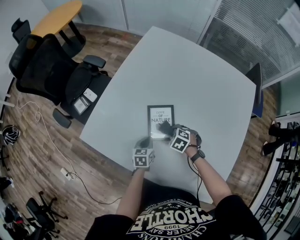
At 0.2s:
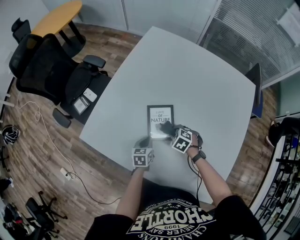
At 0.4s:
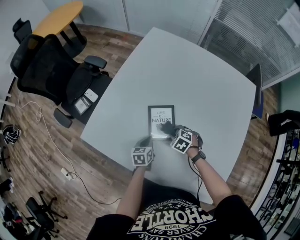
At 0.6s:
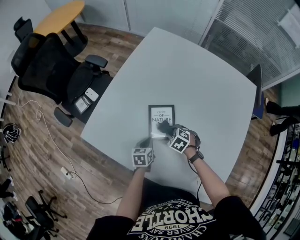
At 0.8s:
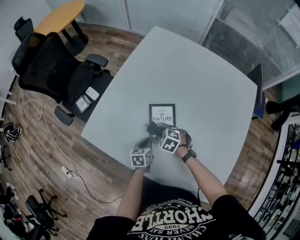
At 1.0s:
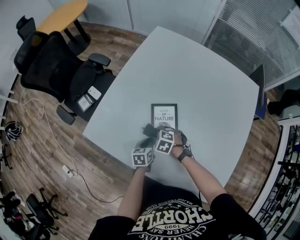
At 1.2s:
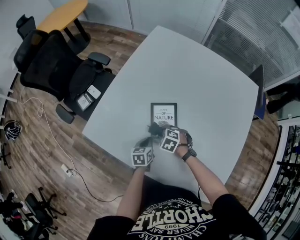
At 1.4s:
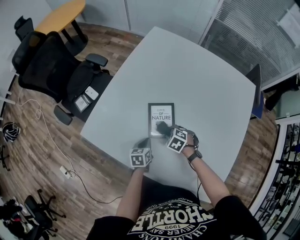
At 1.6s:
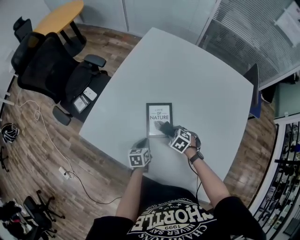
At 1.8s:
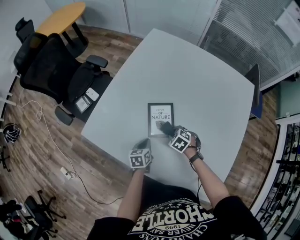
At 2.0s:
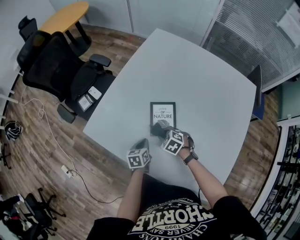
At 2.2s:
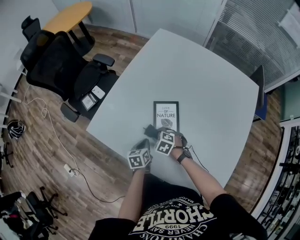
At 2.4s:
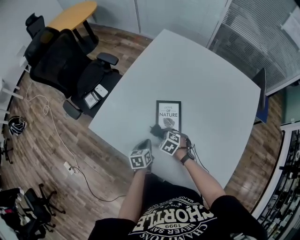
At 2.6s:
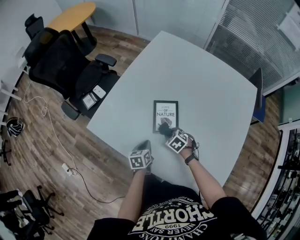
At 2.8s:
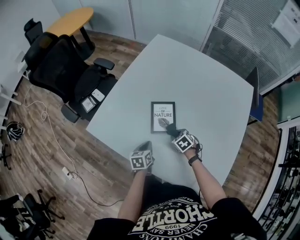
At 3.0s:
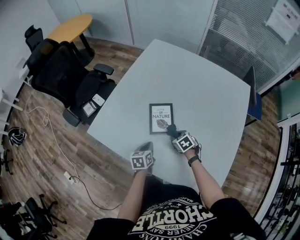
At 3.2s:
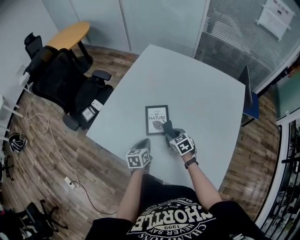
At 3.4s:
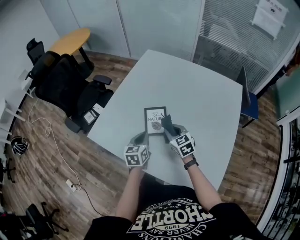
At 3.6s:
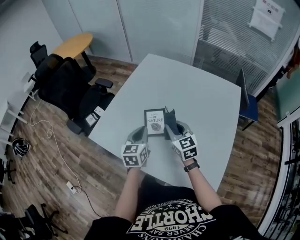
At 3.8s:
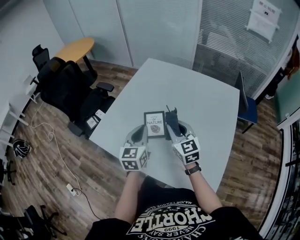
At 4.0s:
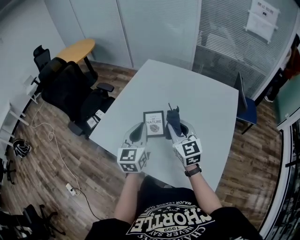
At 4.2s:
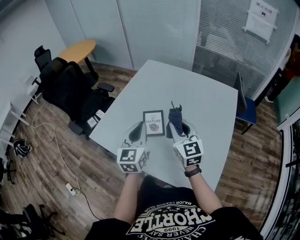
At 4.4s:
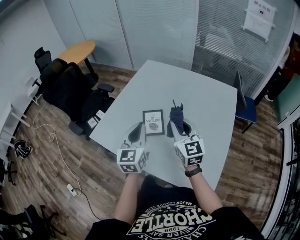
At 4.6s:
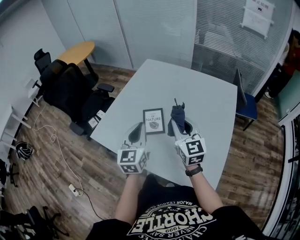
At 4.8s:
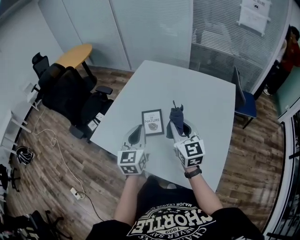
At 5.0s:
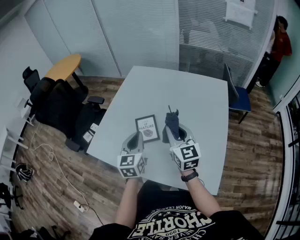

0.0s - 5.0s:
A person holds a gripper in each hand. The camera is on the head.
0.0s - 1.6s: The right gripper goes to the left and returns, some 10 cm each way.
1.6s - 3.4s: The grippers both shift upward by roughly 20 cm. The right gripper points its fingers some 40 degrees further upward, while the left gripper turns by approximately 20 degrees.
3.4s - 5.0s: The right gripper goes about 20 cm upward and backward, and rotates approximately 30 degrees. Meanwhile the left gripper goes approximately 15 cm upward, and changes its angle by some 20 degrees.

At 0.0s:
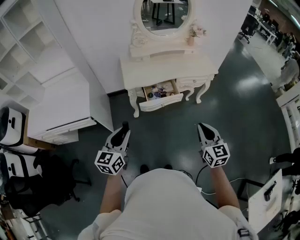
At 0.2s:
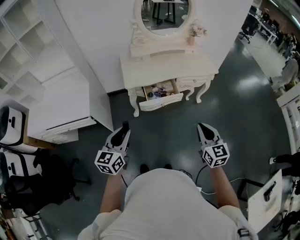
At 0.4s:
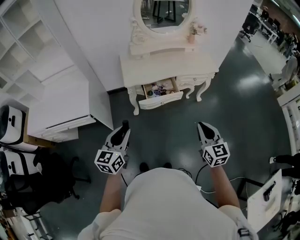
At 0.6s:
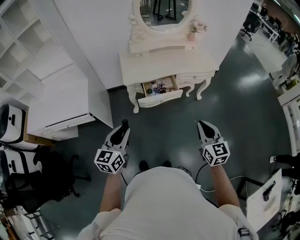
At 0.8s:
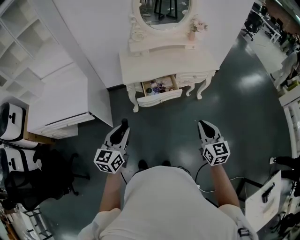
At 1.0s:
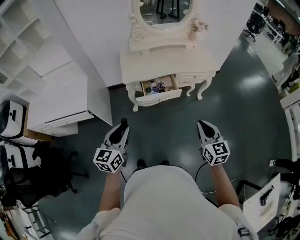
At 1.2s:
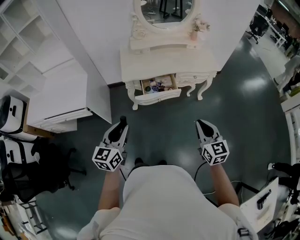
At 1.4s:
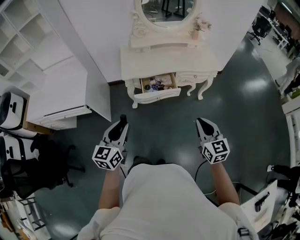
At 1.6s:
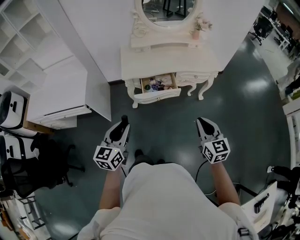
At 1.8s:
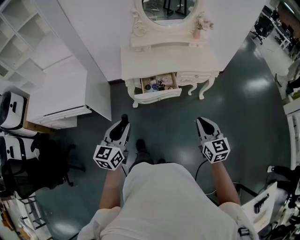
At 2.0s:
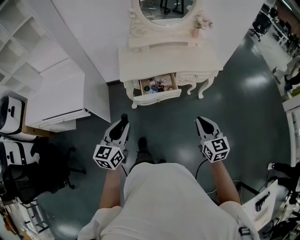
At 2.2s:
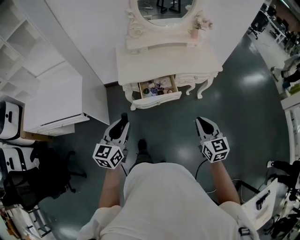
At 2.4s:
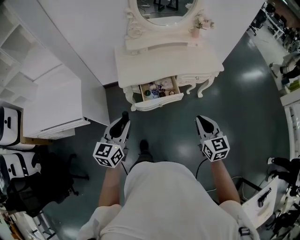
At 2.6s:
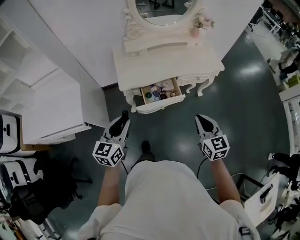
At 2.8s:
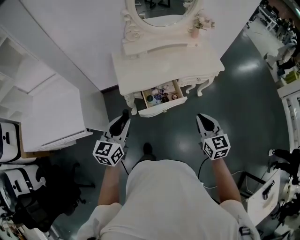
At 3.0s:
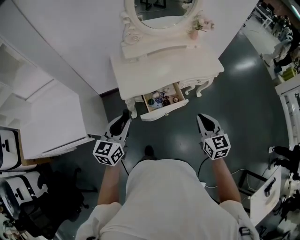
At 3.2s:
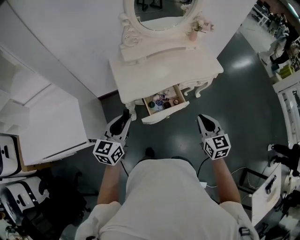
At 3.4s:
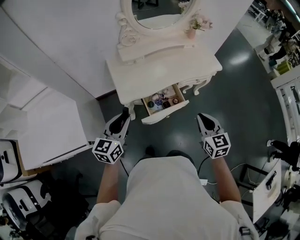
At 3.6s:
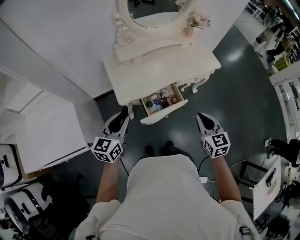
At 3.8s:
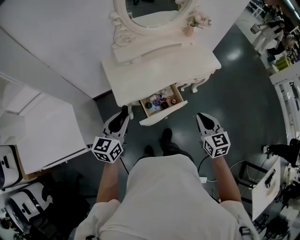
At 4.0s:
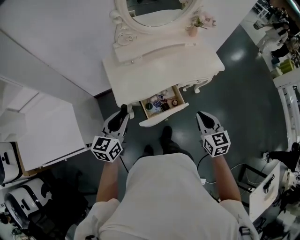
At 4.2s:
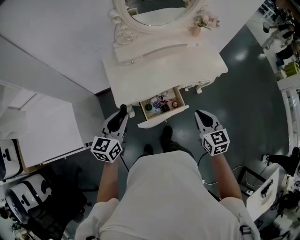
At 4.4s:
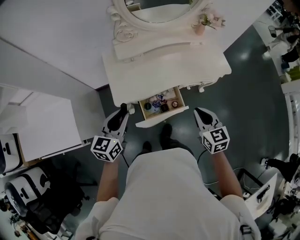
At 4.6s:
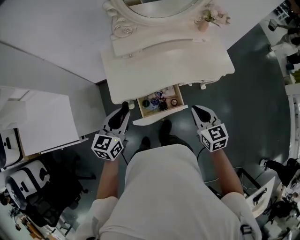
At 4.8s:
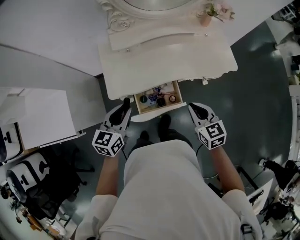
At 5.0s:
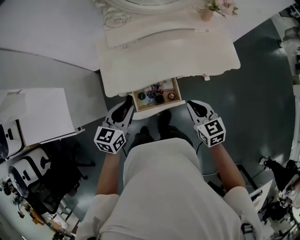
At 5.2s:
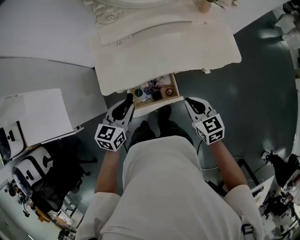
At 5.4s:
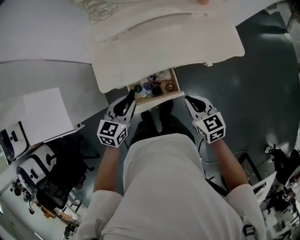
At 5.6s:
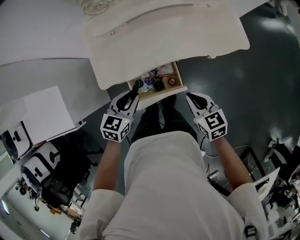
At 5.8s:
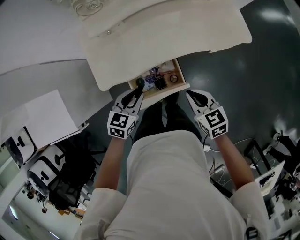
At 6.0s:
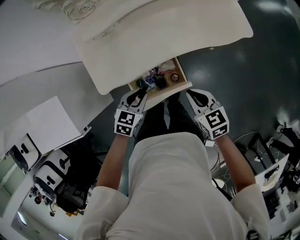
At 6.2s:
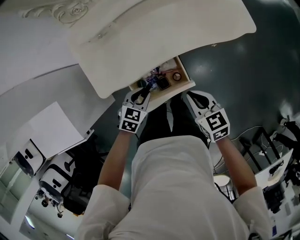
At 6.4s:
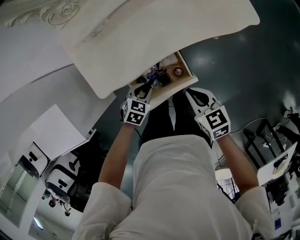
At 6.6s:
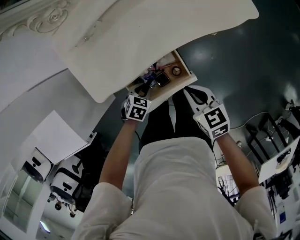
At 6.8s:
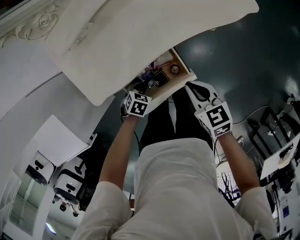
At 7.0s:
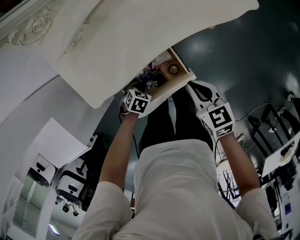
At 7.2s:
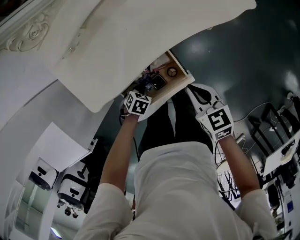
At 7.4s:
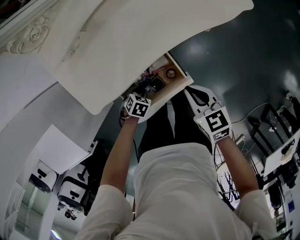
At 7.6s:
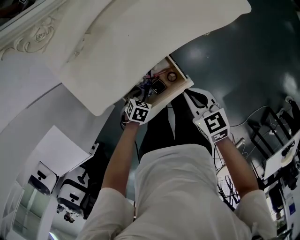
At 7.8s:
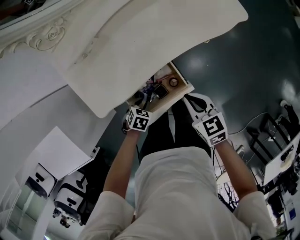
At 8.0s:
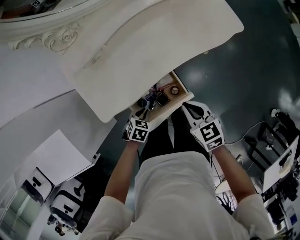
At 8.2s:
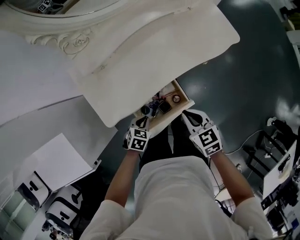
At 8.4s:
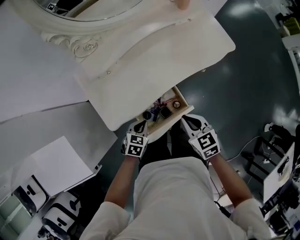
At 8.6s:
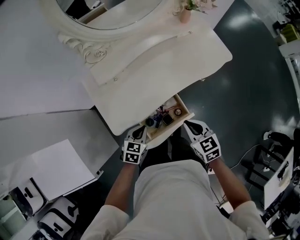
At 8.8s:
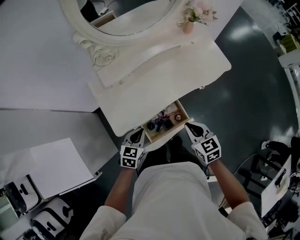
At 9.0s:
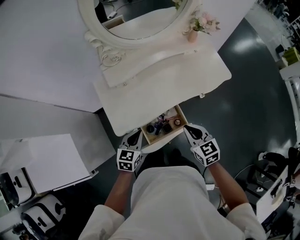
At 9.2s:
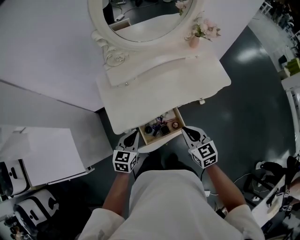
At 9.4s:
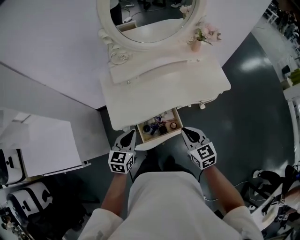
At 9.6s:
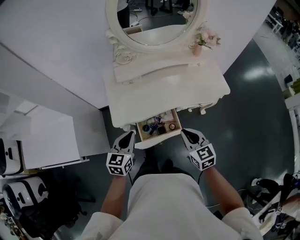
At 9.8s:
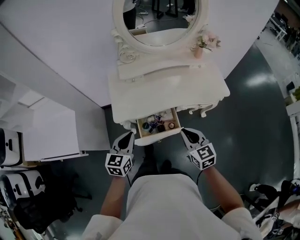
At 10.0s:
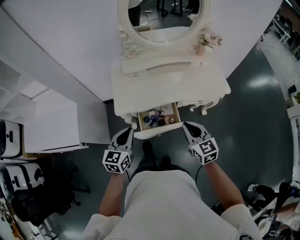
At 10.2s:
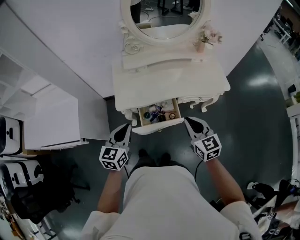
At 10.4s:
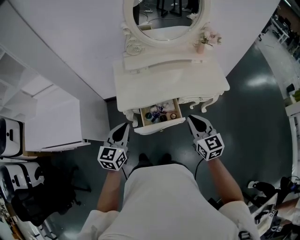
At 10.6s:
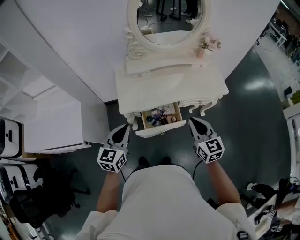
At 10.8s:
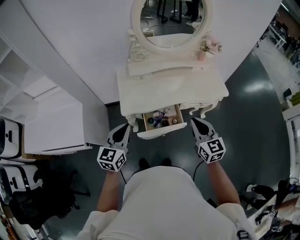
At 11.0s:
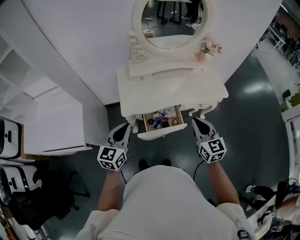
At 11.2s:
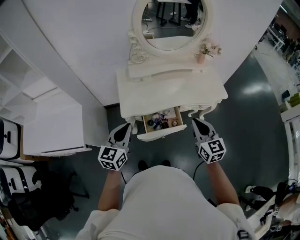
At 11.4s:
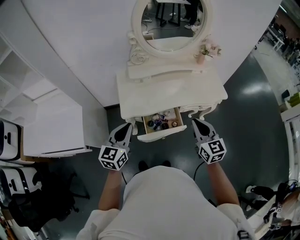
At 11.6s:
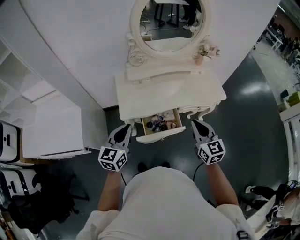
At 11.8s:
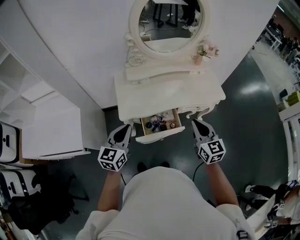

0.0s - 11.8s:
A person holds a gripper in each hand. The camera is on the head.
0.0s - 1.4s: Both grippers move to the right, approximately 5 cm.
1.4s - 3.0s: The left gripper is displaced forward by about 25 cm, while the right gripper travels forward and to the left by approximately 20 cm.
3.0s - 4.4s: Both grippers travel together forward, roughly 15 cm.
4.4s - 6.0s: The left gripper heads downward and to the right, covering some 25 cm, and angles its fingers downward, by approximately 30 degrees. Meanwhile the right gripper heads downward, covering some 15 cm, and rotates some 20 degrees.
6.0s - 7.4s: The left gripper heads downward, covering some 20 cm, and changes its angle by approximately 40 degrees; the right gripper travels downward by about 5 cm.
7.4s - 8.8s: The right gripper is displaced upward by some 10 cm. Meanwhile the left gripper is displaced upward by roughly 25 cm, tips its fingers upward by approximately 40 degrees, and closes its fingers.
8.8s - 10.4s: Both grippers travel together upward and backward, roughly 20 cm. The right gripper swivels roughly 20 degrees, while the left gripper rotates about 30 degrees.
10.4s - 11.8s: The grippers stay close to where they were, moving slightly.

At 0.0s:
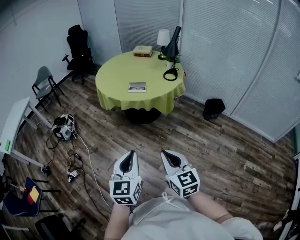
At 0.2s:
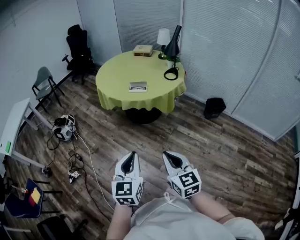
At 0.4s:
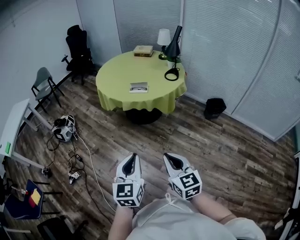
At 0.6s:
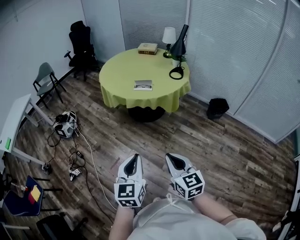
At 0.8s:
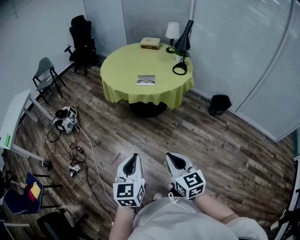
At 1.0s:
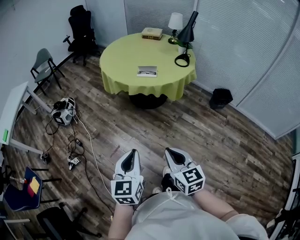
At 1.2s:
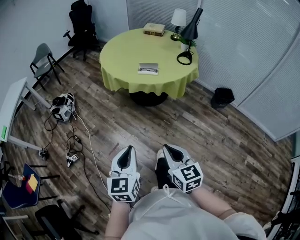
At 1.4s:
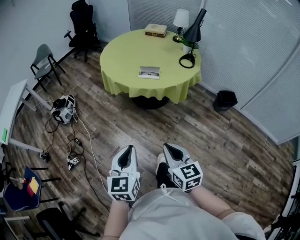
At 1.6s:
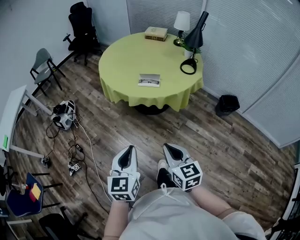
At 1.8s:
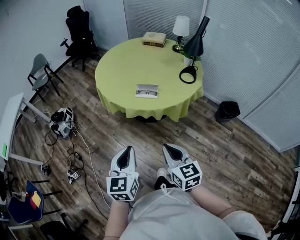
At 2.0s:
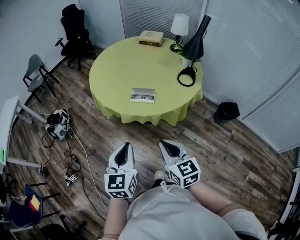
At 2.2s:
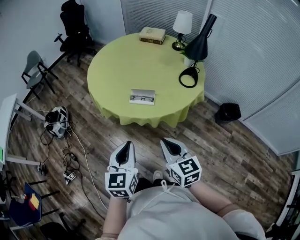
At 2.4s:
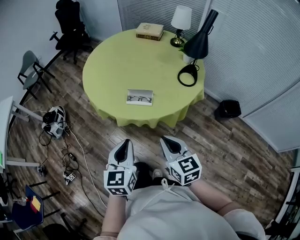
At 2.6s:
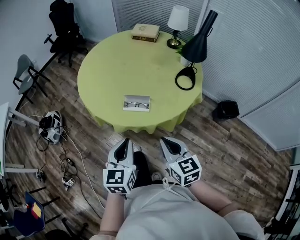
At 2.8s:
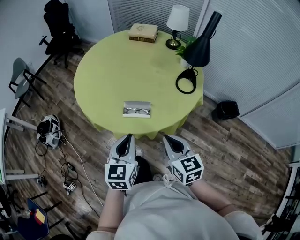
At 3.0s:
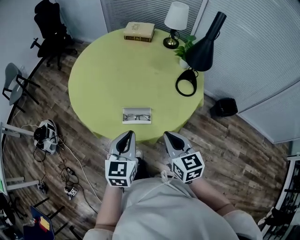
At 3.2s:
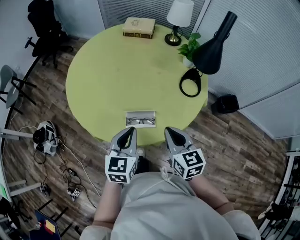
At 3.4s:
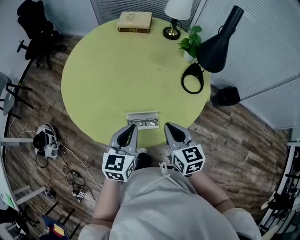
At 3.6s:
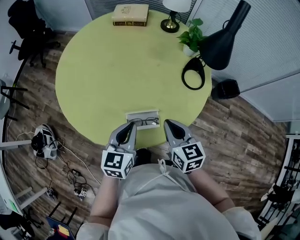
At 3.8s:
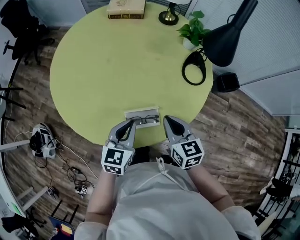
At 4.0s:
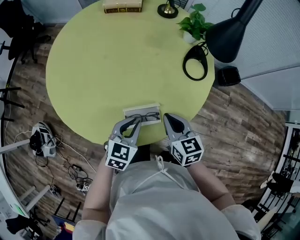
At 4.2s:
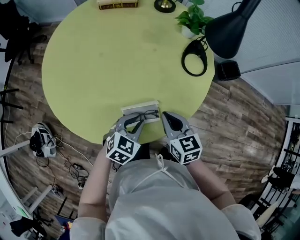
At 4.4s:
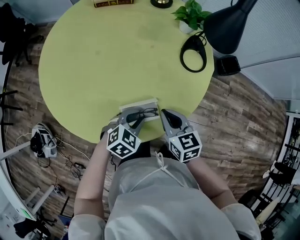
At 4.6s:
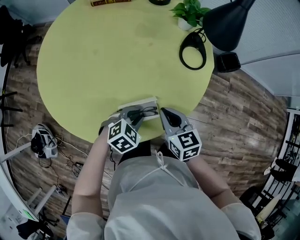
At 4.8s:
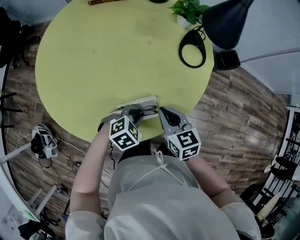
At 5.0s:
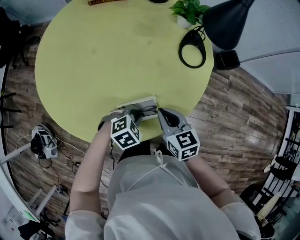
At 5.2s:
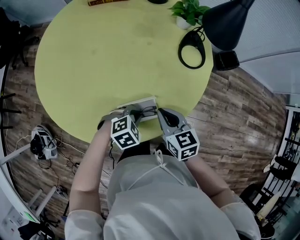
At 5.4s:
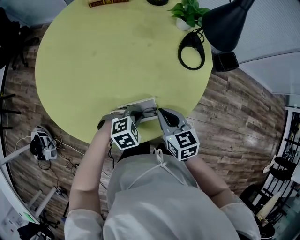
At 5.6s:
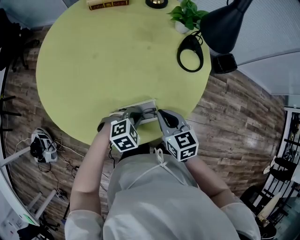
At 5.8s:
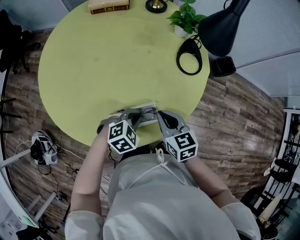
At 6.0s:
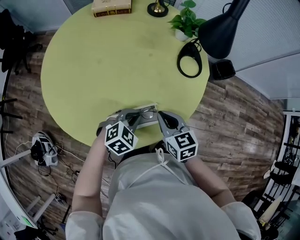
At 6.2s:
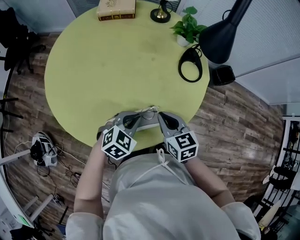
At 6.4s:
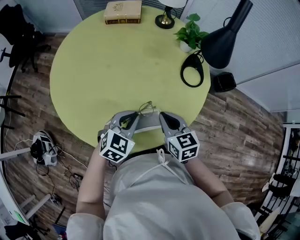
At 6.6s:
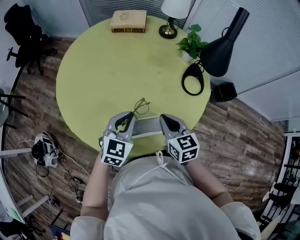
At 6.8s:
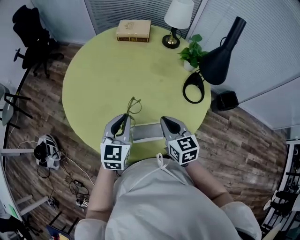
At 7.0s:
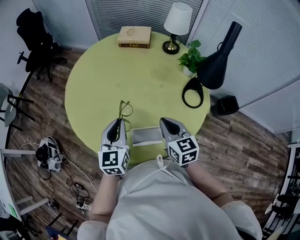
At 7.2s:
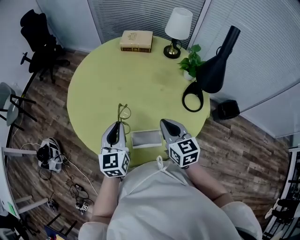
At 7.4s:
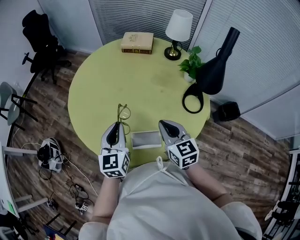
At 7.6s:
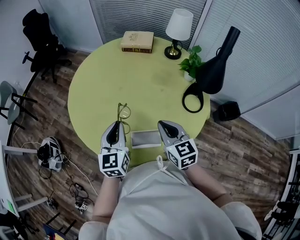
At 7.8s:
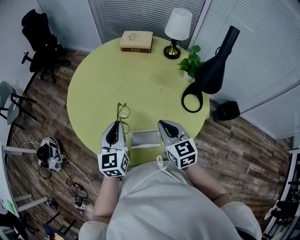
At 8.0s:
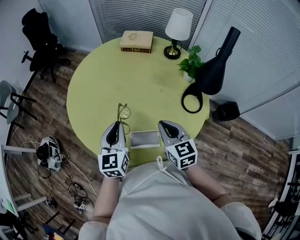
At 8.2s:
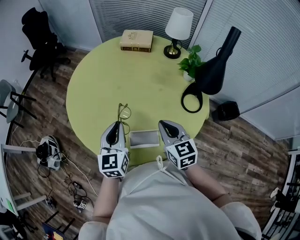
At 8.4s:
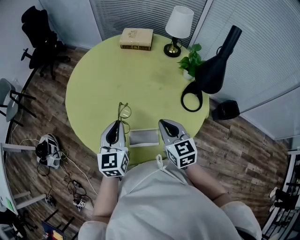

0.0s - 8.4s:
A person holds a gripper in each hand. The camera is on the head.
0.0s - 1.4s: The right gripper heads forward and downward, covering roughly 15 cm, while the left gripper shifts some 15 cm forward, to the left and downward.
1.4s - 2.8s: The two grippers travel together, forward, approximately 50 cm.
2.8s - 4.2s: The left gripper changes place by approximately 30 cm, and turns by about 60 degrees. Meanwhile the right gripper moves about 25 cm.
4.2s - 5.6s: The left gripper moves approximately 5 cm, and rotates approximately 30 degrees.
5.6s - 7.0s: The right gripper travels upward by some 10 cm; the left gripper moves upward, roughly 25 cm, and points its fingers about 50 degrees further upward.
7.0s - 8.4s: The grippers make only small movements.
